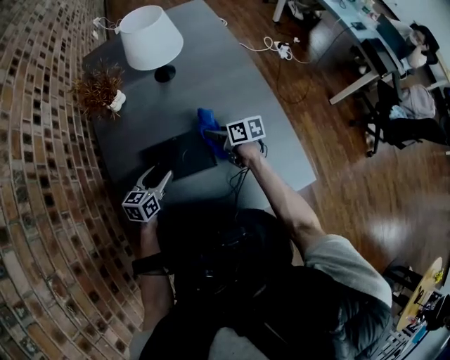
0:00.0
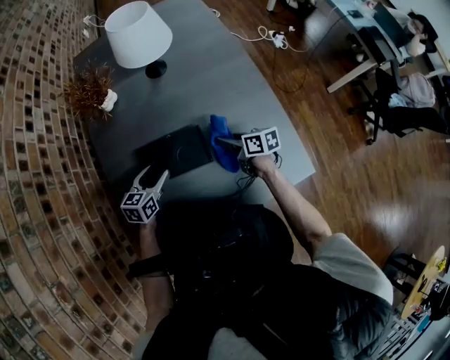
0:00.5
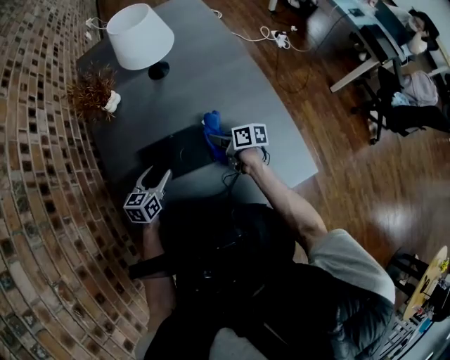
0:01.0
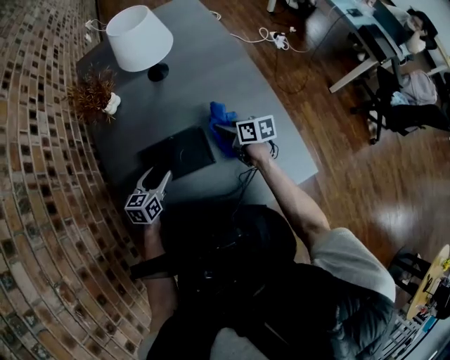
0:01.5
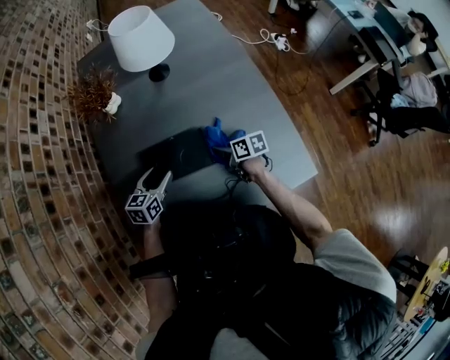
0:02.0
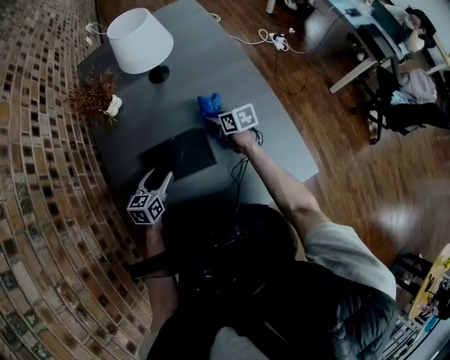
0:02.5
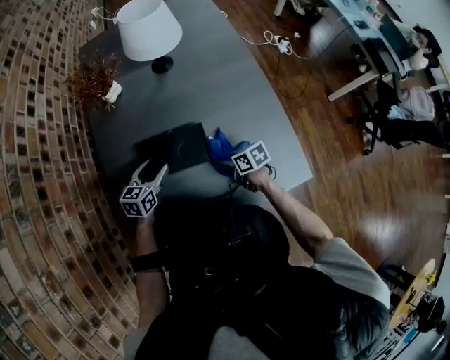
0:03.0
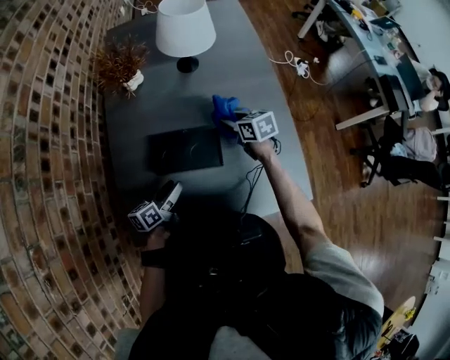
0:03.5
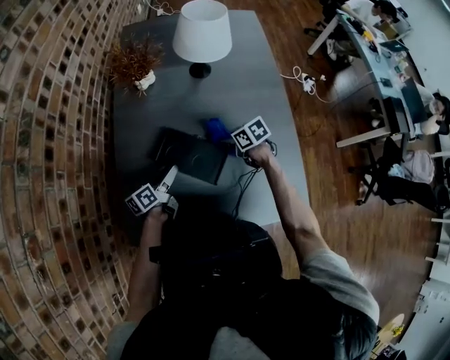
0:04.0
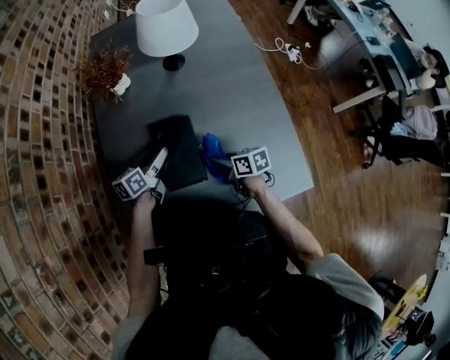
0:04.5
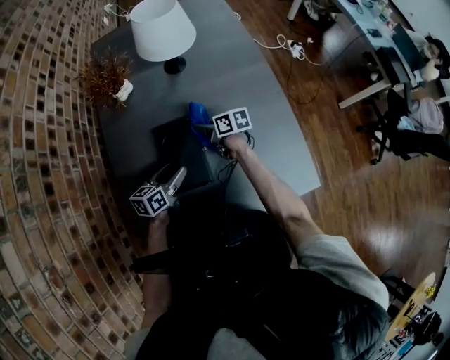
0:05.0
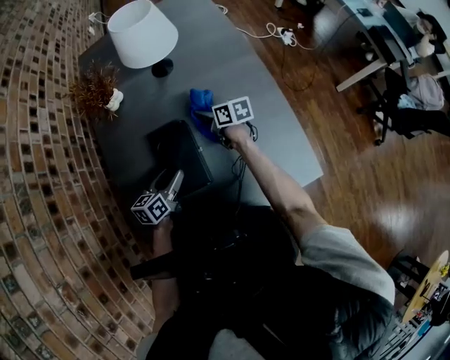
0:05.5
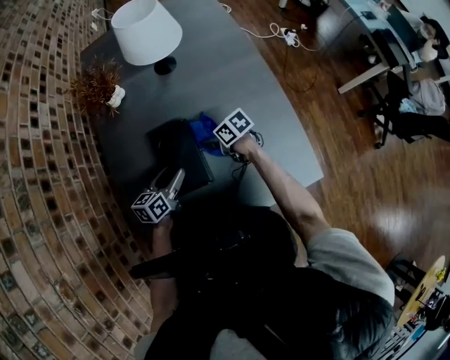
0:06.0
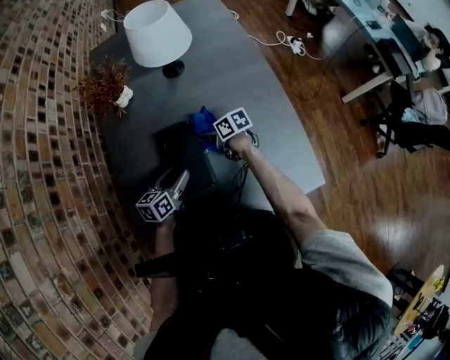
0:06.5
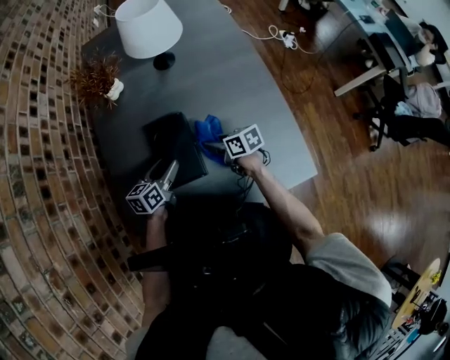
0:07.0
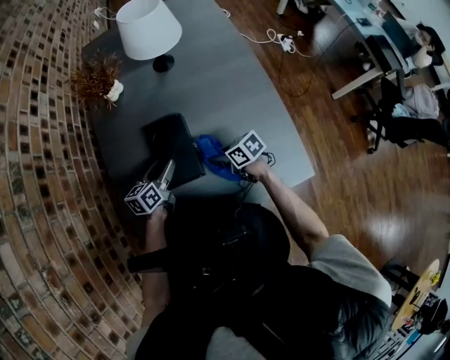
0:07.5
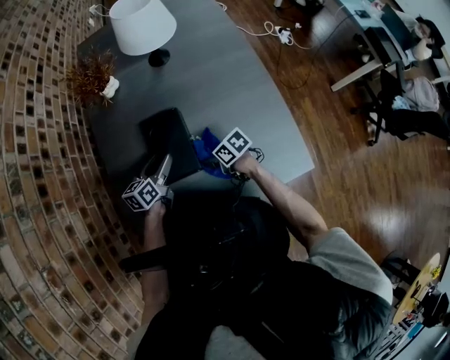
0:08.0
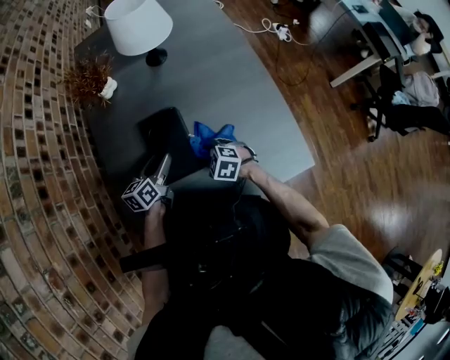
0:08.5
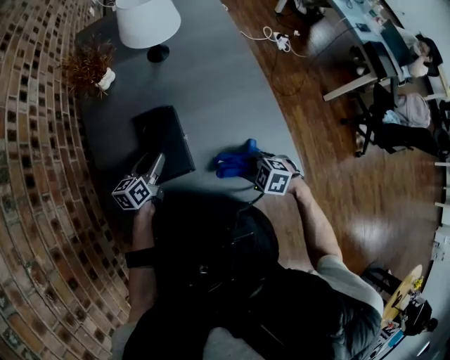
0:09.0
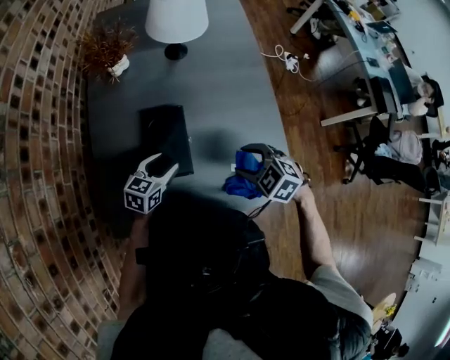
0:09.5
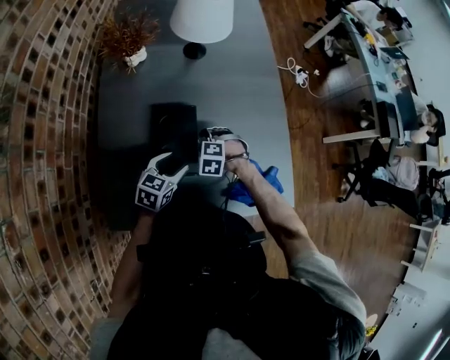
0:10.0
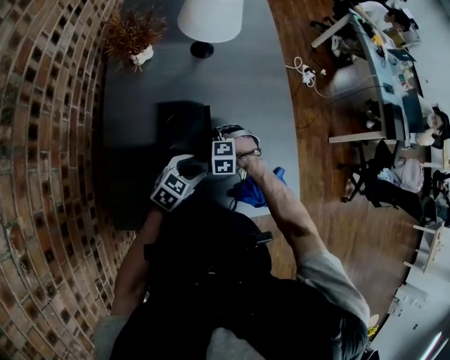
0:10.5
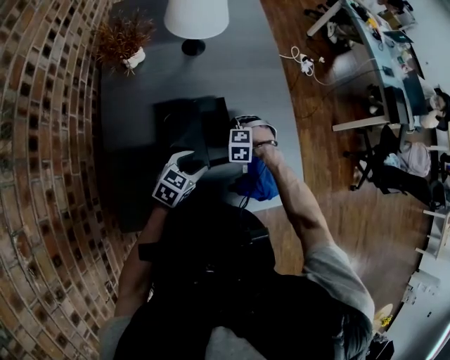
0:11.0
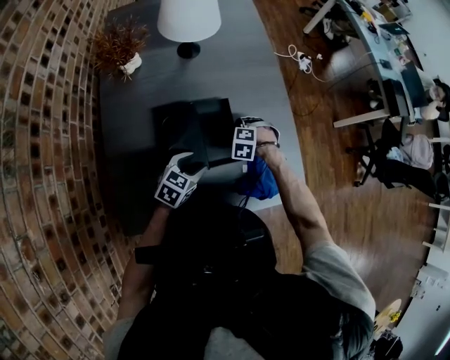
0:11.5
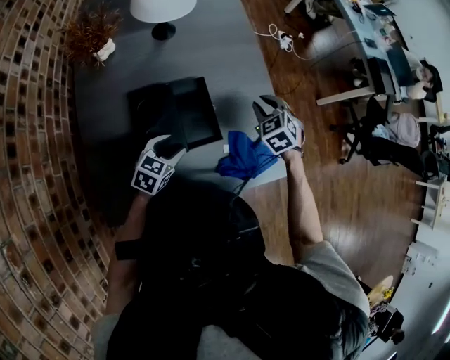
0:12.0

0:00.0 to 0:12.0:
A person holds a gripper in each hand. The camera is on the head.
0:00.0 to 0:02.0: The right gripper swings forward and backward, roughly 5 cm each way, with 2 reversals.
0:02.0 to 0:04.0: The right gripper swings forward and backward, some 15 cm each way, with 2 reversals, and turns by roughly 40 degrees; the left gripper goes backward and returns, about 10 cm each way, and rotates around the line of its fingers by about 50 degrees, counterclockwise from behind.
0:04.0 to 0:06.0: The left gripper is displaced to the right by about 5 cm, and swivels roughly 30 degrees, while the right gripper goes forward and backward, approximately 15 cm each way, reversing 2 times.
0:06.0 to 0:08.0: The right gripper shifts roughly 10 cm backward.
0:08.0 to 0:10.0: The right gripper travels upward and back again, approximately 15 cm each way, and rolls counterclockwise, seen from behind, by approximately 70 degrees, while the left gripper changes place by about 5 cm, and turns by about 30 degrees.
0:10.0 to 0:12.0: The right gripper shifts by approximately 25 cm, and twists roughly 40 degrees clockwise, seen from behind.

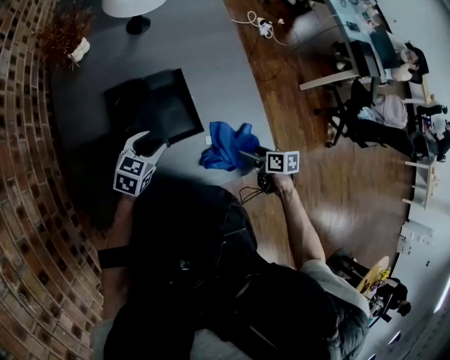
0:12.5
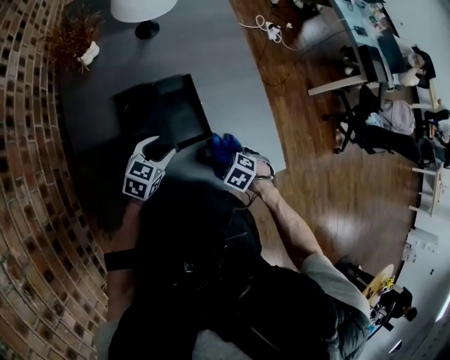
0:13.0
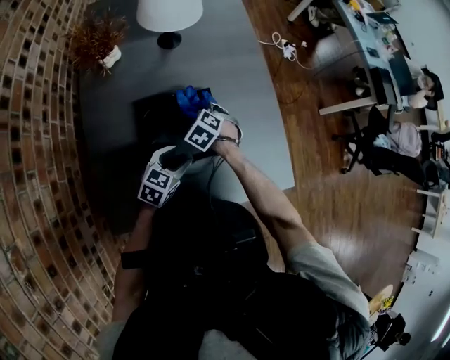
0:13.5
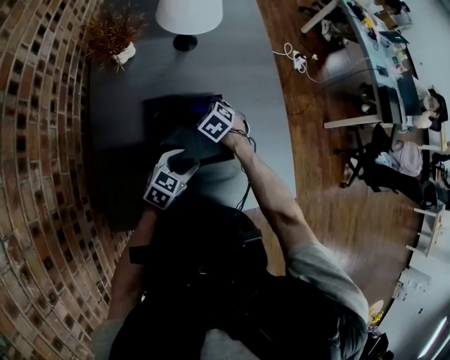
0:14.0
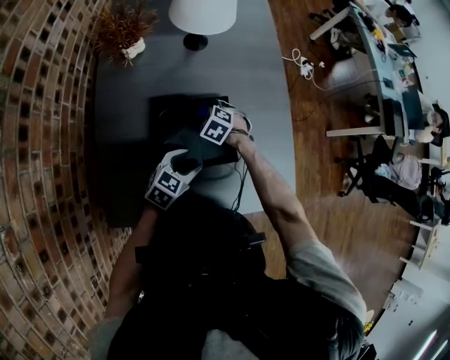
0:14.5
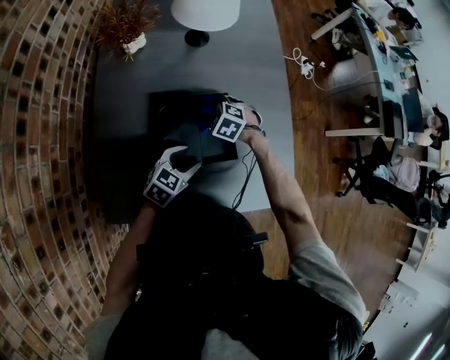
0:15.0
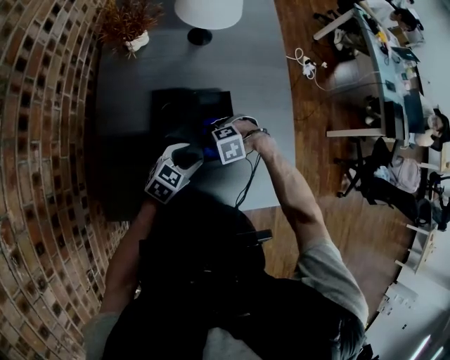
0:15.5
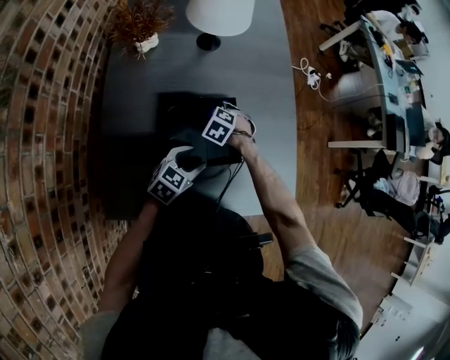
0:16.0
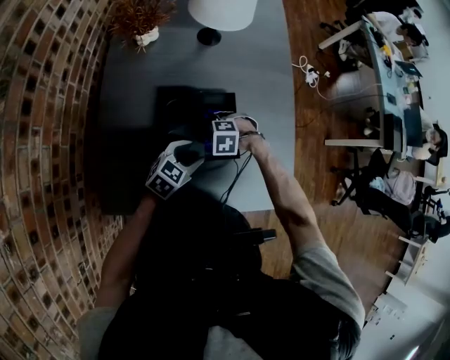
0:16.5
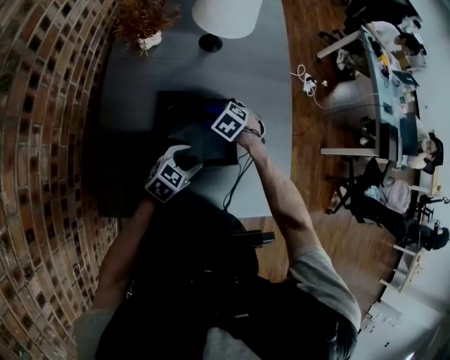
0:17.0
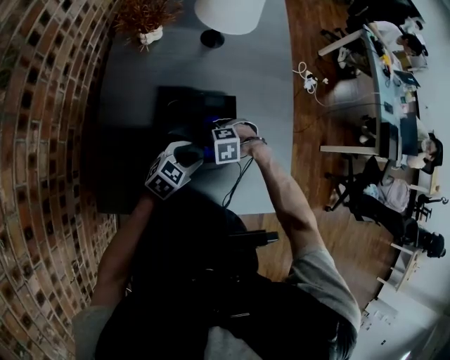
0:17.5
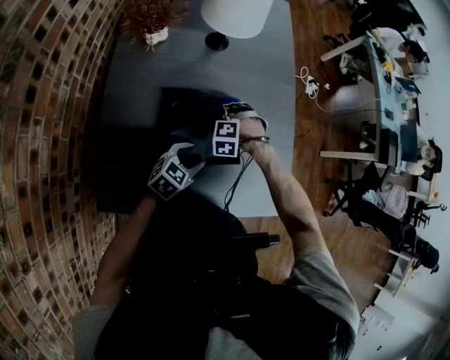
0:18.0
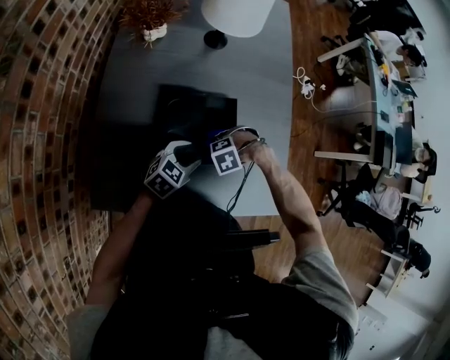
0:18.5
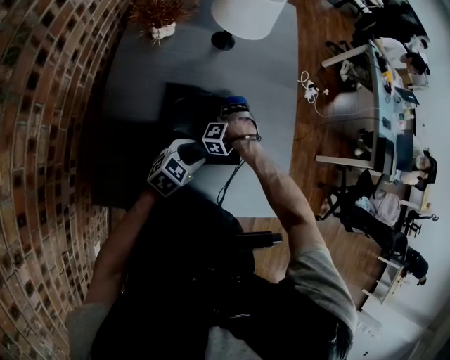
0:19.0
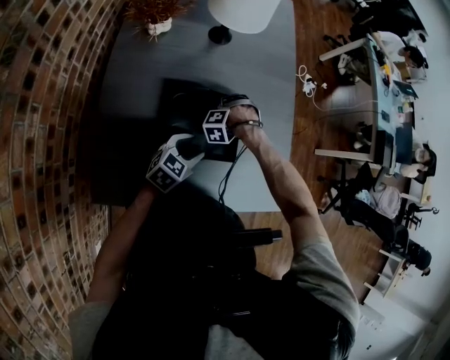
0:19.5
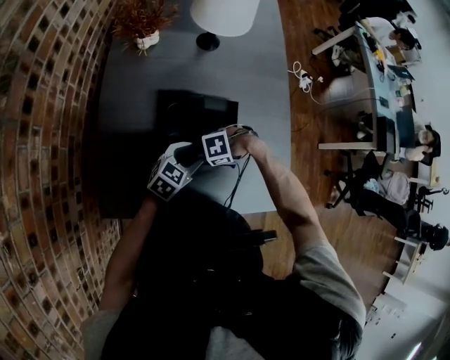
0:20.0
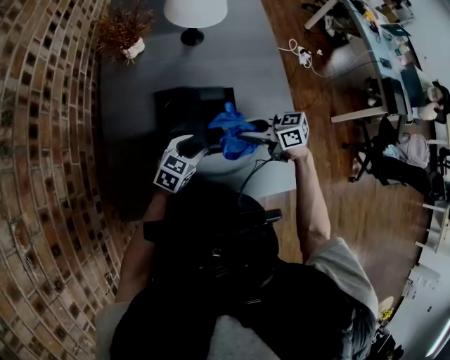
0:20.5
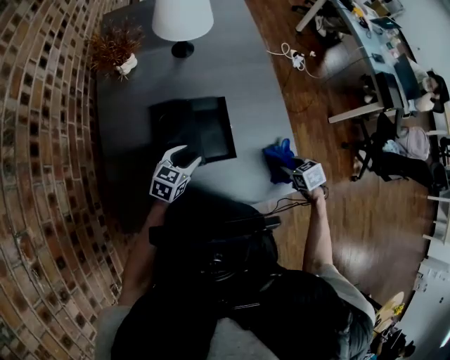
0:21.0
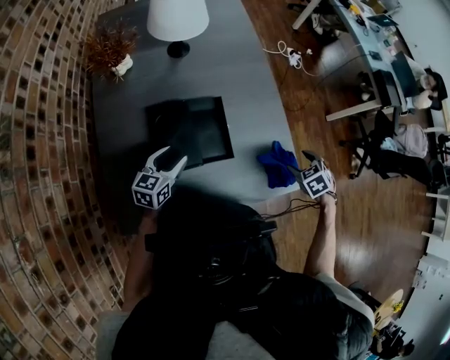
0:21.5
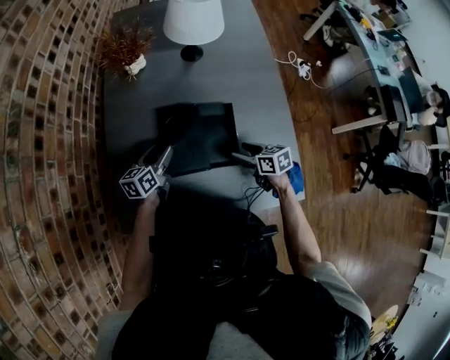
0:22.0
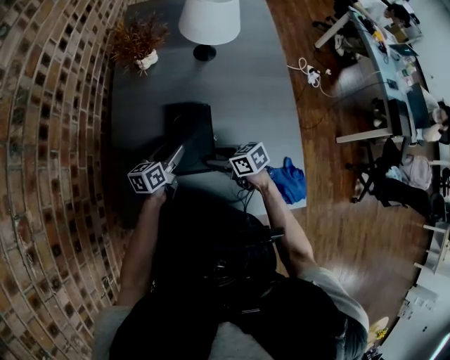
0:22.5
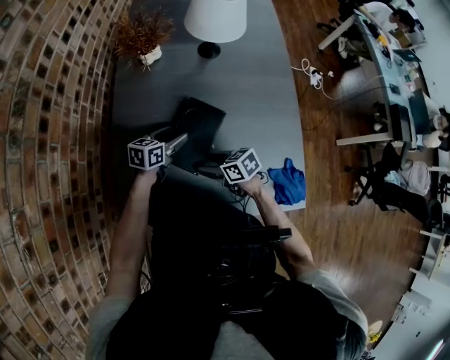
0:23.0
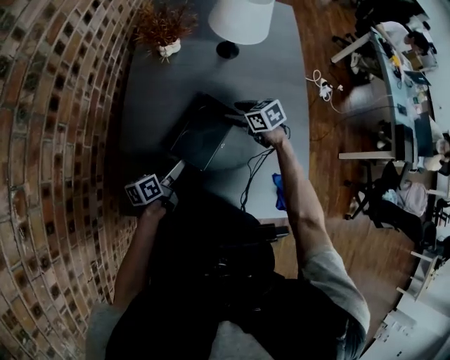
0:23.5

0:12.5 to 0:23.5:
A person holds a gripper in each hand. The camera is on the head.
0:12.5 to 0:14.5: The right gripper changes place by some 35 cm, rolls counterclockwise, seen from behind, by roughly 90 degrees, and closes.
0:16.0 to 0:18.0: The right gripper rotates roughly 40 degrees.
0:18.0 to 0:20.0: The right gripper shifts by approximately 15 cm, and rotates approximately 40 degrees.
0:20.0 to 0:21.5: The left gripper shifts by about 5 cm. The right gripper swings up and down, some 15 cm each way, with 2 reversals, rolls clockwise, seen from behind, by some 70 degrees, and opens its fingers.
0:21.5 to 0:23.5: The right gripper changes place by about 40 cm, and swivels roughly 40 degrees. The left gripper moves roughly 10 cm, and twists some 50 degrees counterclockwise, seen from behind.

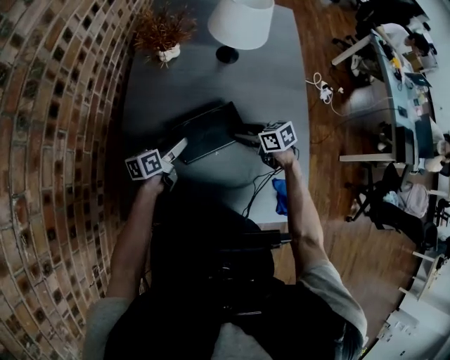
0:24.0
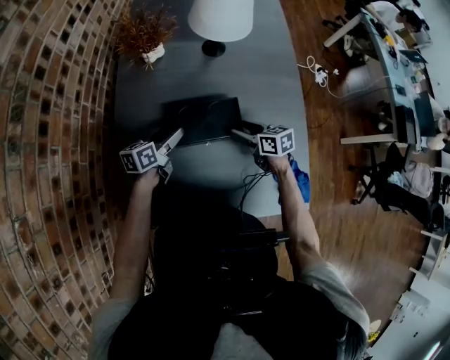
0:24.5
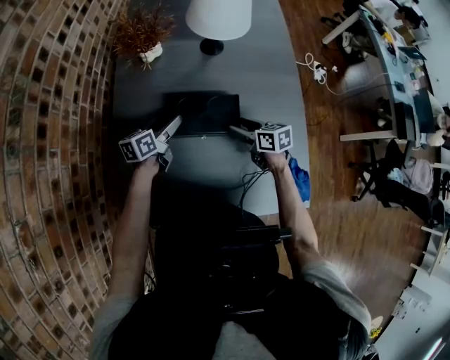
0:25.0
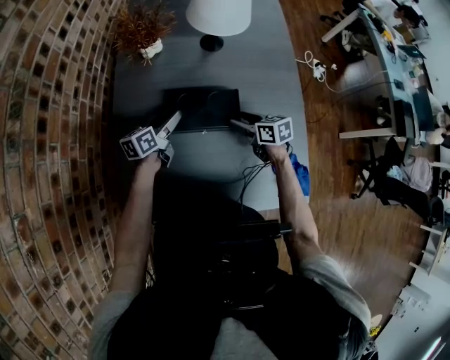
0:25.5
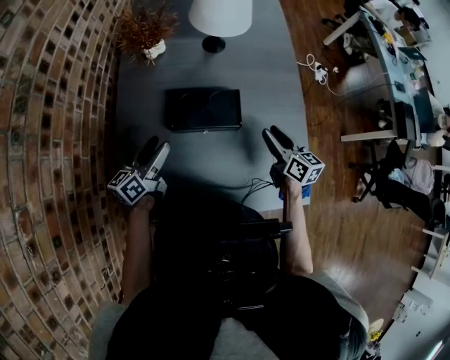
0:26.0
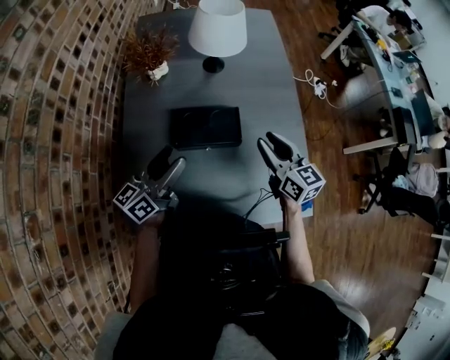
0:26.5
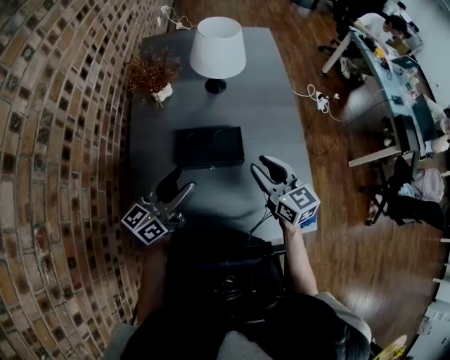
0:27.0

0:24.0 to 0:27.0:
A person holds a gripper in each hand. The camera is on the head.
0:24.0 to 0:25.5: The left gripper shifts approximately 5 cm forward.
0:25.5 to 0:27.0: The grippers both shift upward and backward by some 20 cm. The left gripper changes its angle by some 30 degrees; the right gripper swivels approximately 40 degrees, and closes.
